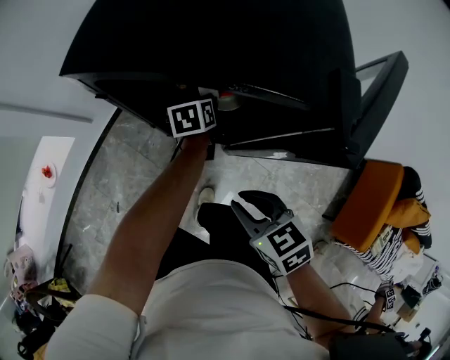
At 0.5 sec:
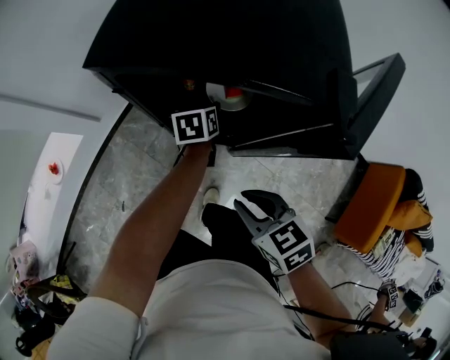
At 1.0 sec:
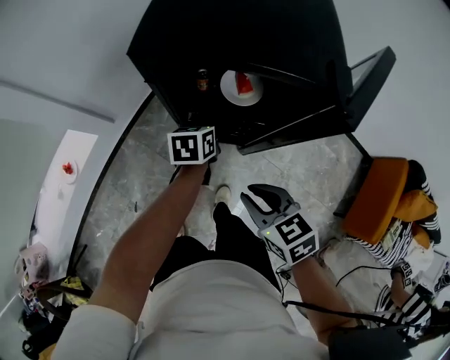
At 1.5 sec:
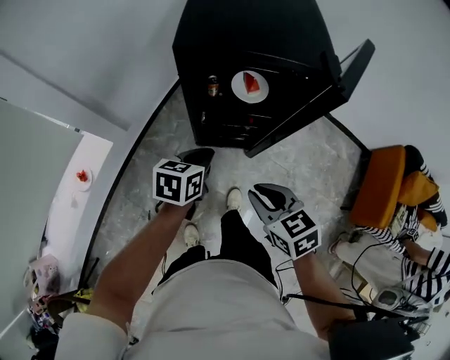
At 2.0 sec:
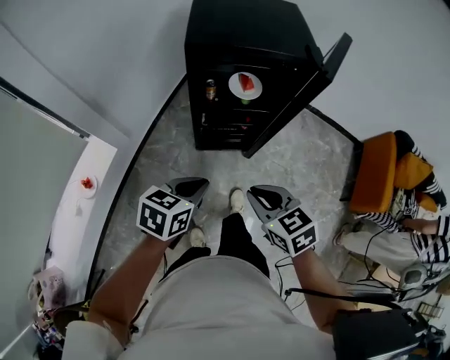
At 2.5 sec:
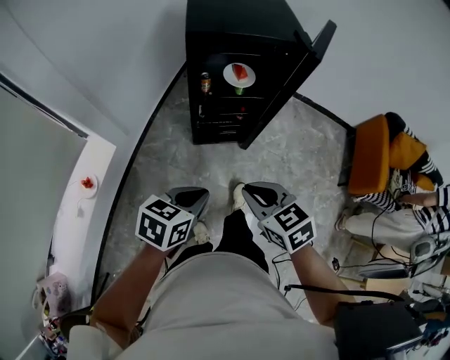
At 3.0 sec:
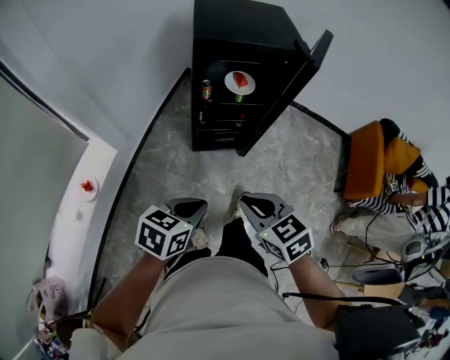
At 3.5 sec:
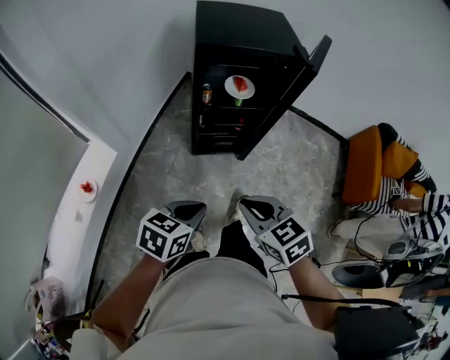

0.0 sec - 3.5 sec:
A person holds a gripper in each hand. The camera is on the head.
0.0 sec - 2.0 sec: The right gripper moves about 25 cm, while the left gripper shifts by about 50 cm, rotates about 40 degrees, and closes its fingers.
2.0 sec - 3.5 sec: Both grippers travel together backward, roughly 10 cm.

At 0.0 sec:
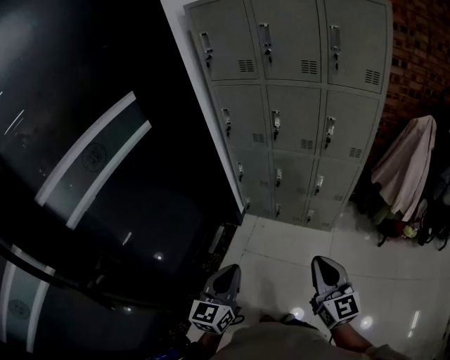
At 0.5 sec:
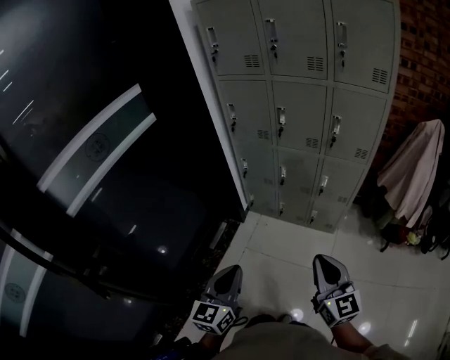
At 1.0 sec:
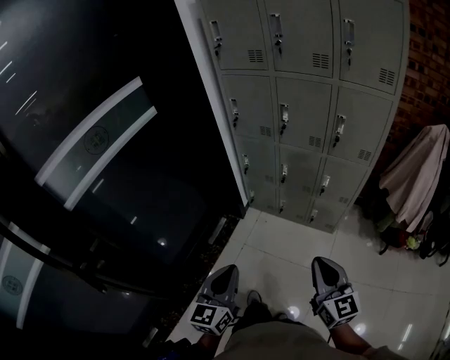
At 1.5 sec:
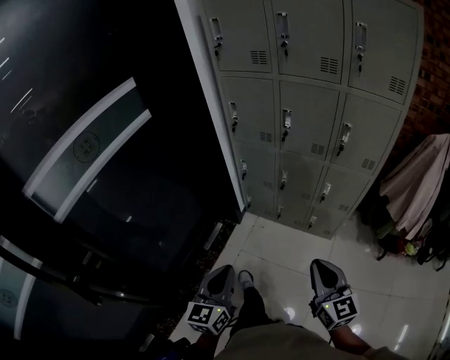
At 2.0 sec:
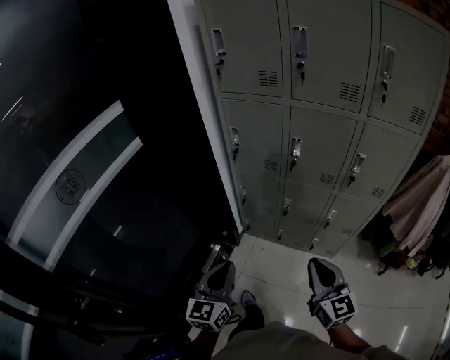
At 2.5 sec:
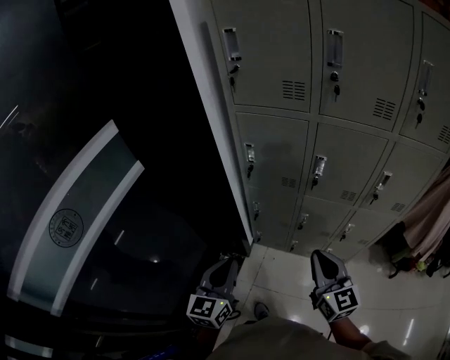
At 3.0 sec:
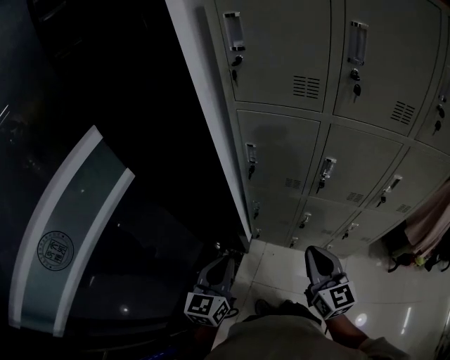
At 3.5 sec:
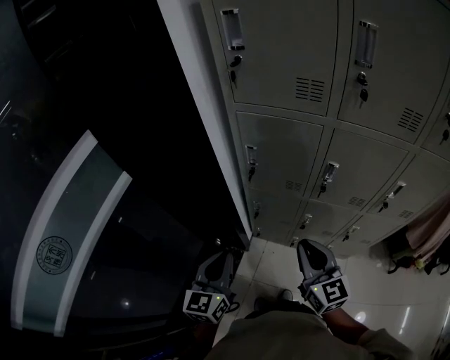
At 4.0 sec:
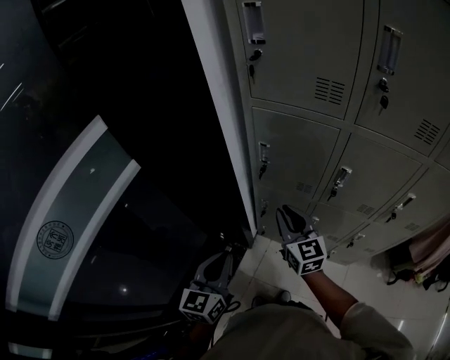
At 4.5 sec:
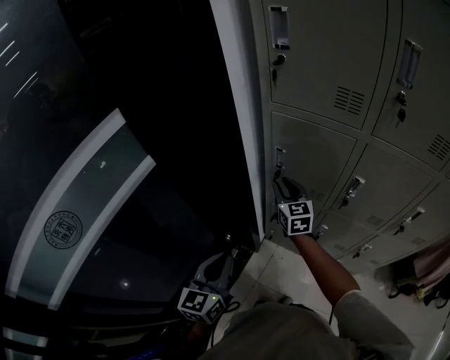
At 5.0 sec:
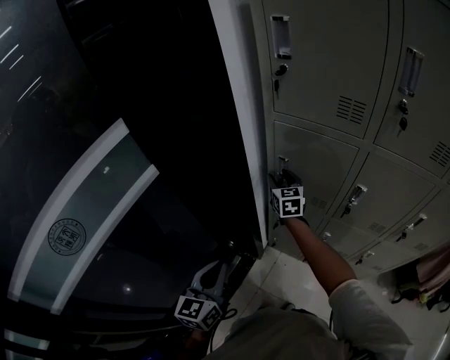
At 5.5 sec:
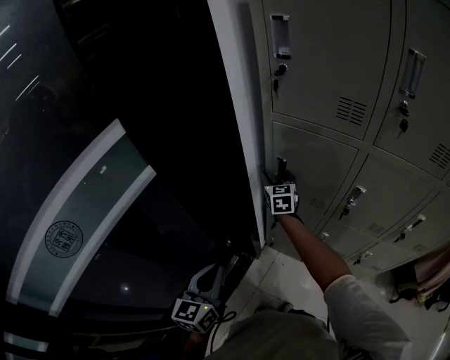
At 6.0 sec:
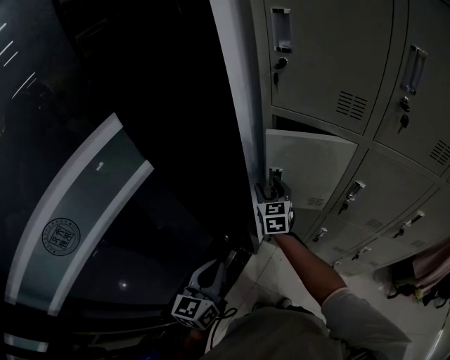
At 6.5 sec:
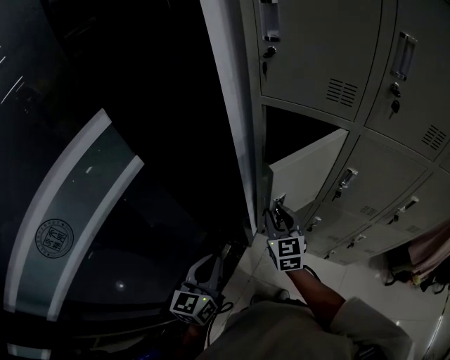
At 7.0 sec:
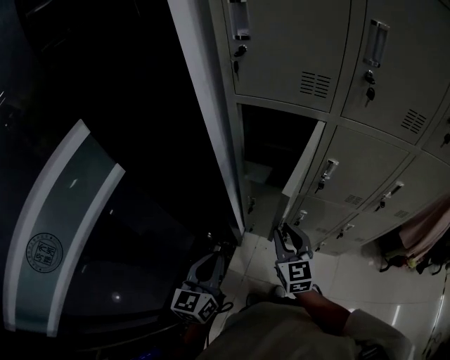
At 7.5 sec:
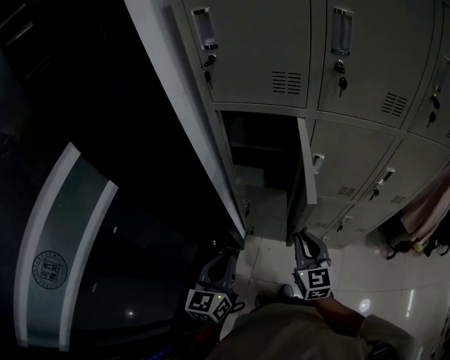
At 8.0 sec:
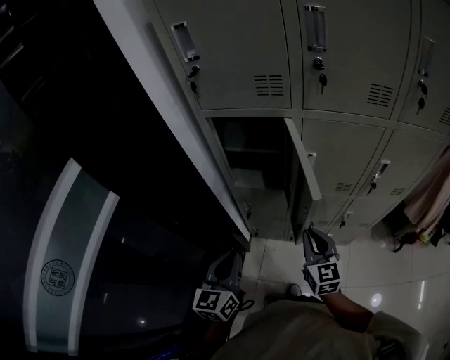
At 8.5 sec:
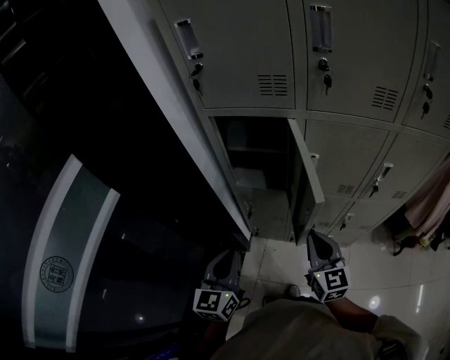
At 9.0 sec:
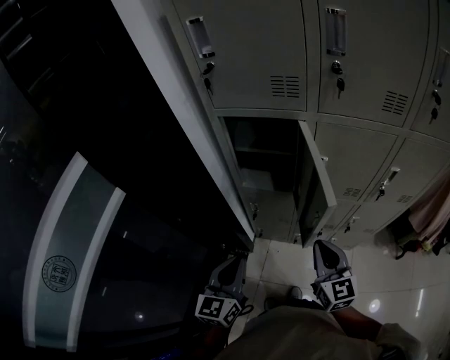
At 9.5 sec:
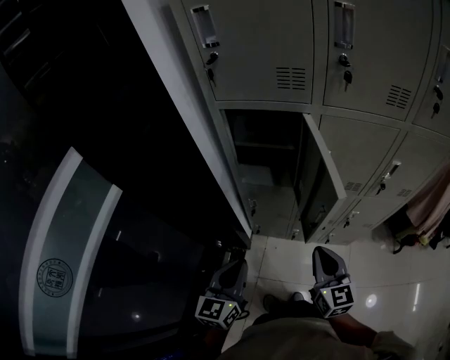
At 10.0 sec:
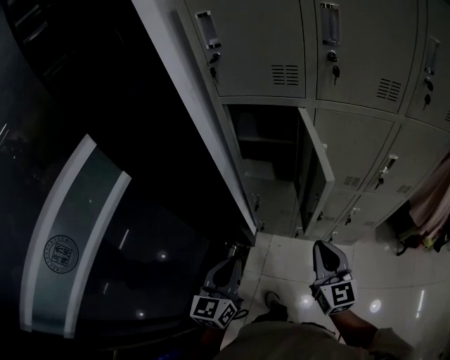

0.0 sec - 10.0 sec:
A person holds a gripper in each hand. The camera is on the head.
0.0 sec - 2.0 sec: The two grippers go approximately 25 cm forward.
2.0 sec - 4.0 sec: The right gripper heads forward and to the left, covering roughly 40 cm, while the left gripper goes some 30 cm forward and to the left.
4.0 sec - 6.0 sec: The right gripper goes roughly 20 cm forward and to the left, and opens its fingers.
6.0 sec - 8.0 sec: The left gripper is displaced to the right by some 15 cm. Meanwhile the right gripper is displaced to the right and backward by some 35 cm, and closes.
8.0 sec - 10.0 sec: The left gripper shifts about 5 cm backward, while the right gripper shifts some 10 cm backward and upward.

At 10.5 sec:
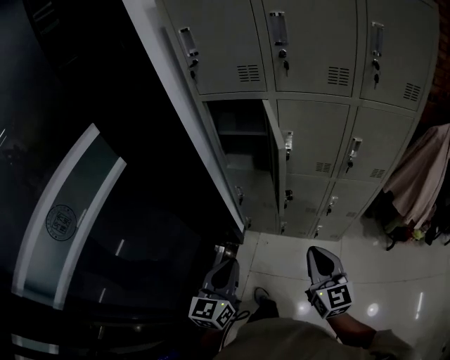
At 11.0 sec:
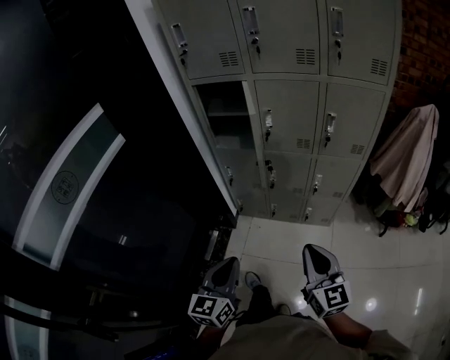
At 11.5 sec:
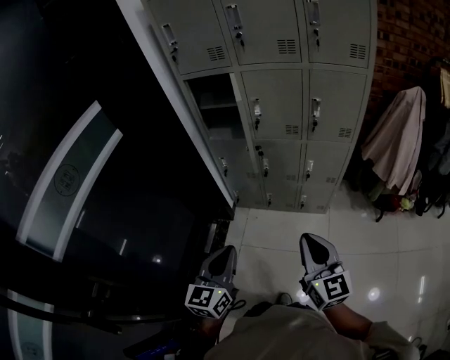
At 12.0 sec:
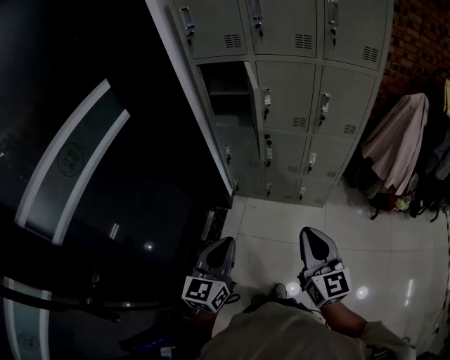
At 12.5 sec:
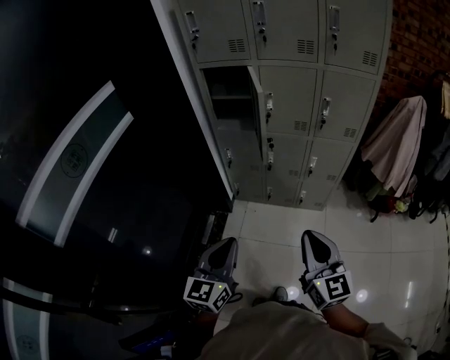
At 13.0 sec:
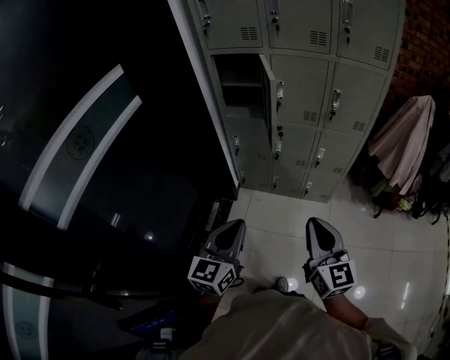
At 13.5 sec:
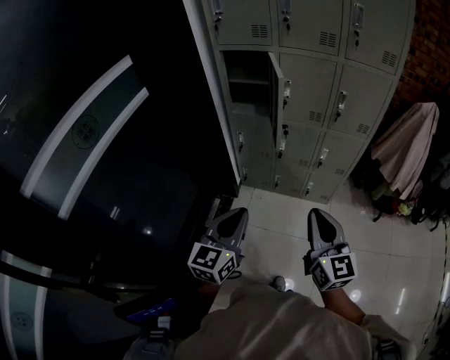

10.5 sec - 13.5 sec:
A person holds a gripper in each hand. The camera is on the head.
10.5 sec - 12.0 sec: Both grippers travel together backward, about 25 cm.
12.0 sec - 13.5 sec: The grippers move only a little.

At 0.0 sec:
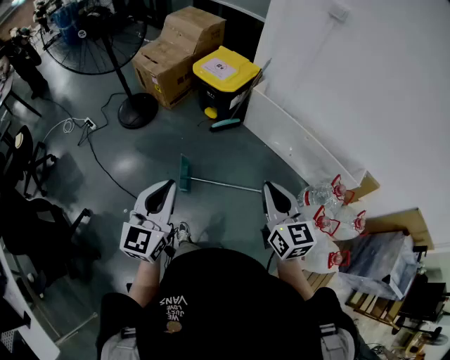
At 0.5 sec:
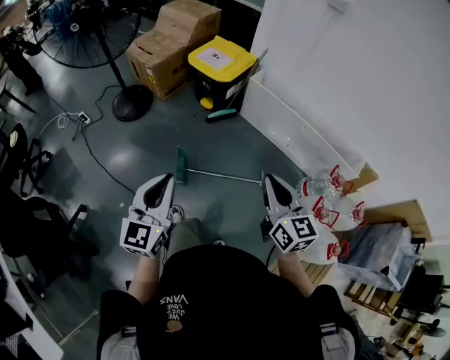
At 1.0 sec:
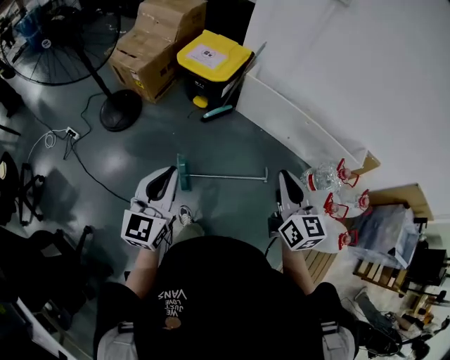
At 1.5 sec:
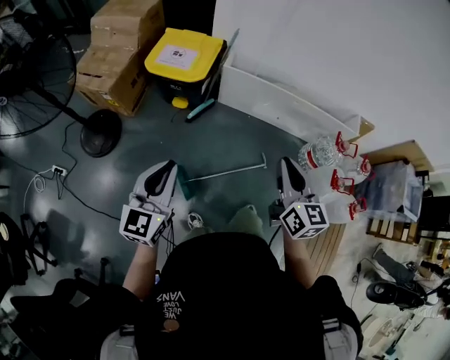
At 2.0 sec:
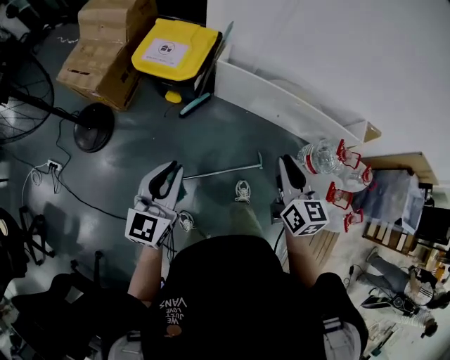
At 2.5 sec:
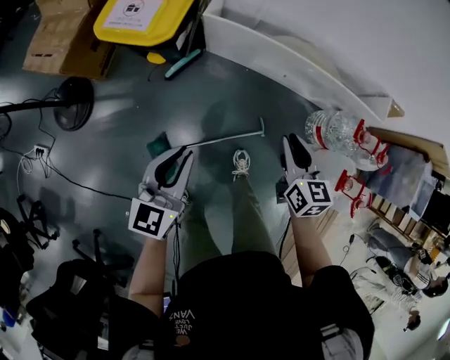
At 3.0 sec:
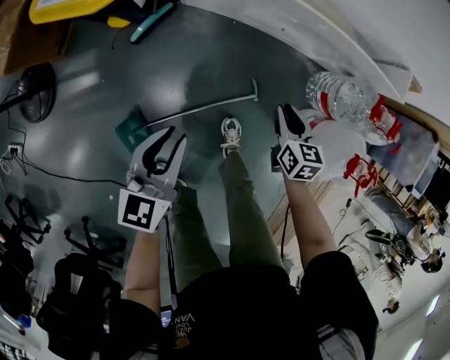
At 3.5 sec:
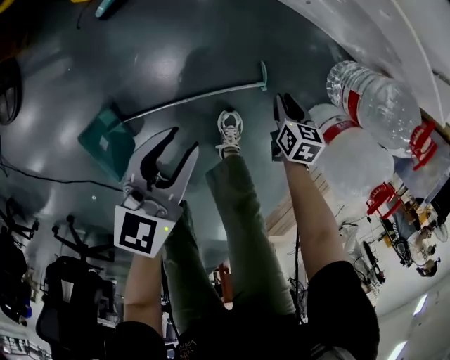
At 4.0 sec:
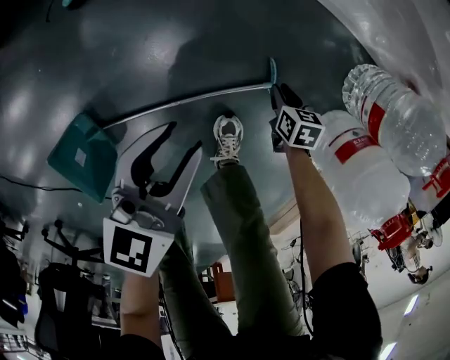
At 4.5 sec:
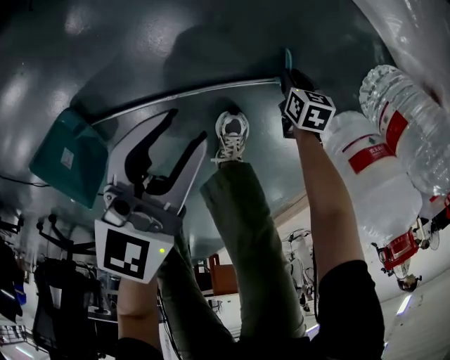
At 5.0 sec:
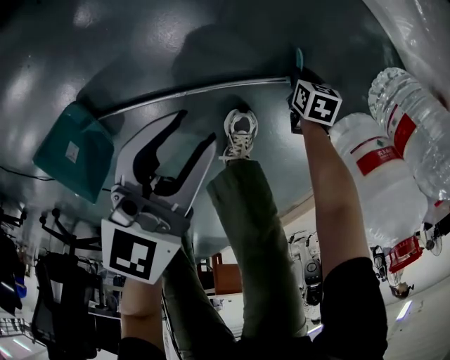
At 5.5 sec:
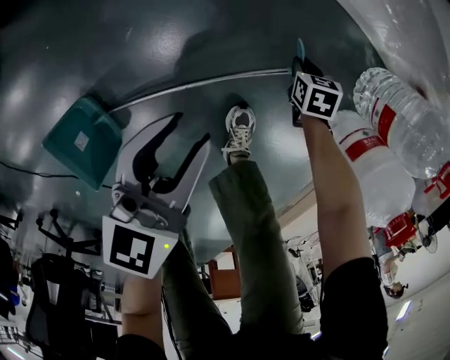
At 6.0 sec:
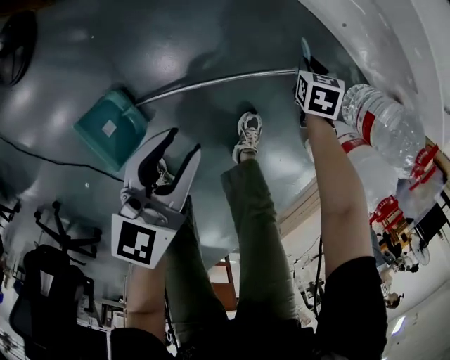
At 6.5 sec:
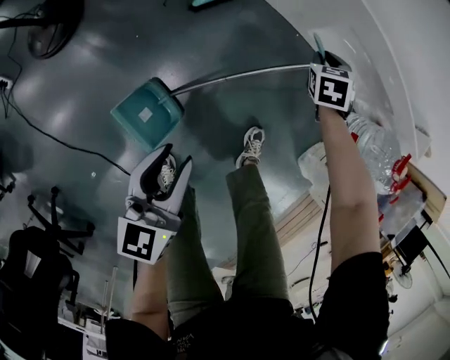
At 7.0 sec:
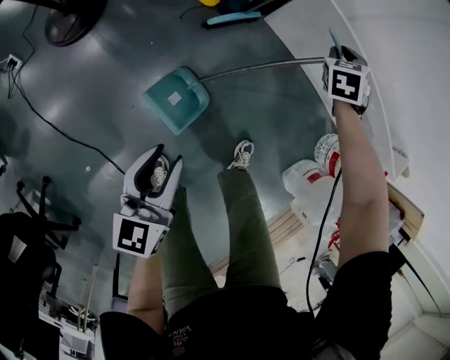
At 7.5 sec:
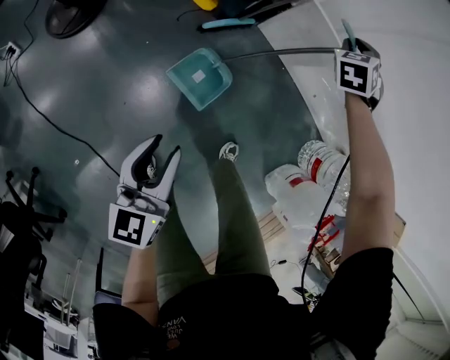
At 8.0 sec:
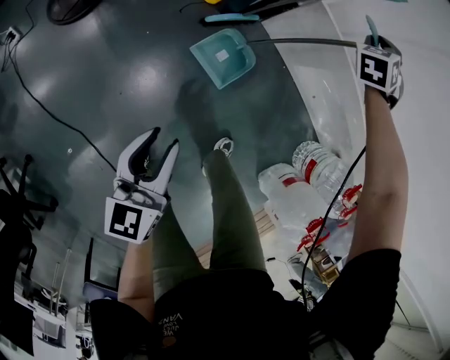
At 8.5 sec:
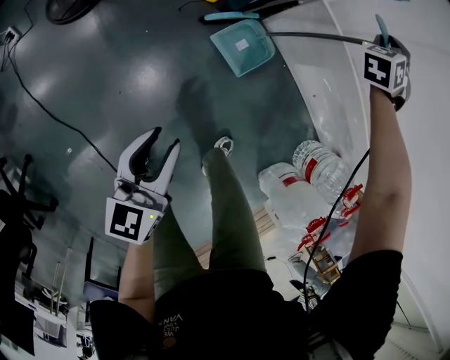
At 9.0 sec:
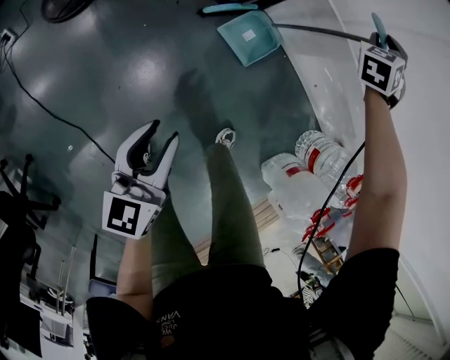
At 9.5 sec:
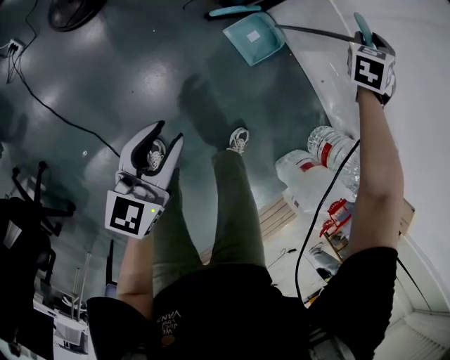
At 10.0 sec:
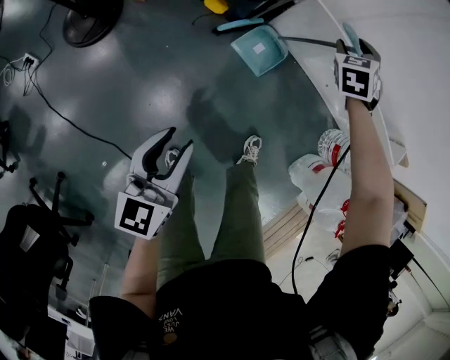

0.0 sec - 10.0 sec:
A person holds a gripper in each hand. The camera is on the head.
0.0 sec - 2.0 sec: The left gripper ends up approximately 30 cm from where it was, and swivels roughly 30 degrees. Meanwhile the right gripper changes place by roughly 25 cm, and turns by about 30 degrees.
2.0 sec - 4.0 sec: The right gripper travels downward by some 80 cm, and tips its fingers downward by about 50 degrees. The left gripper moves downward, some 50 cm, changes its angle by roughly 30 degrees, and opens.
4.0 sec - 6.0 sec: The right gripper moves upward, roughly 15 cm, and turns by roughly 30 degrees; the left gripper ends up about 20 cm from where it was.
6.0 sec - 8.0 sec: The left gripper is displaced upward and to the left by approximately 20 cm, and turns by about 30 degrees. The right gripper heads upward, forward and to the left, covering about 50 cm, and rolls counterclockwise, seen from behind, by roughly 40 degrees.
8.0 sec - 10.0 sec: The left gripper travels upward and backward by approximately 10 cm. The right gripper moves backward, roughly 15 cm, and opens its fingers.
